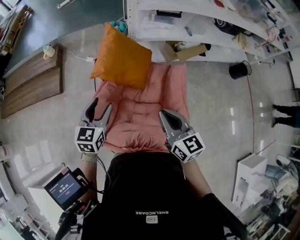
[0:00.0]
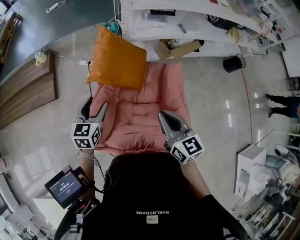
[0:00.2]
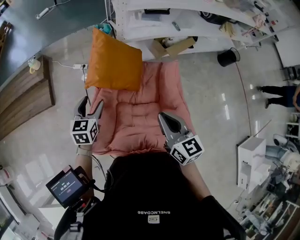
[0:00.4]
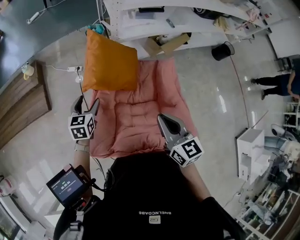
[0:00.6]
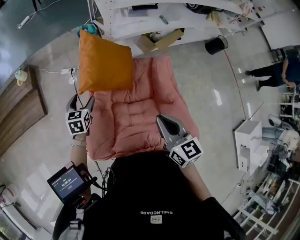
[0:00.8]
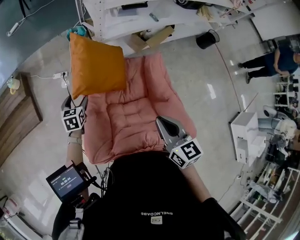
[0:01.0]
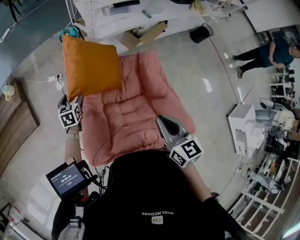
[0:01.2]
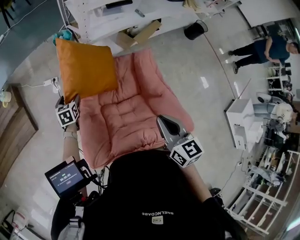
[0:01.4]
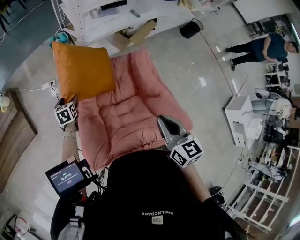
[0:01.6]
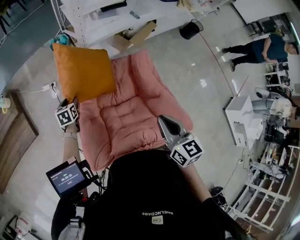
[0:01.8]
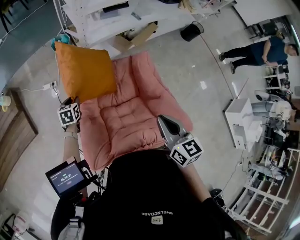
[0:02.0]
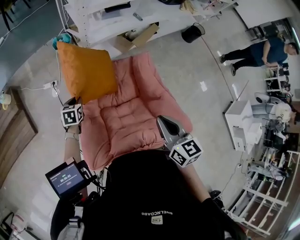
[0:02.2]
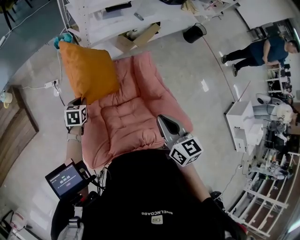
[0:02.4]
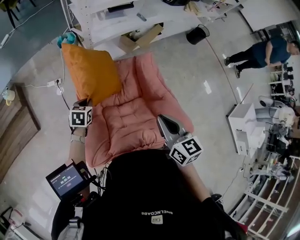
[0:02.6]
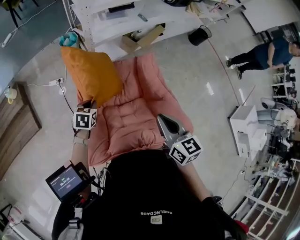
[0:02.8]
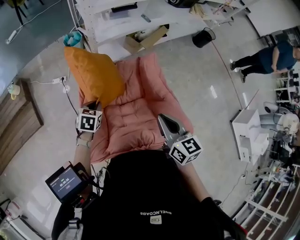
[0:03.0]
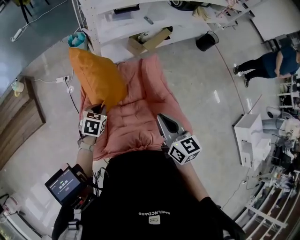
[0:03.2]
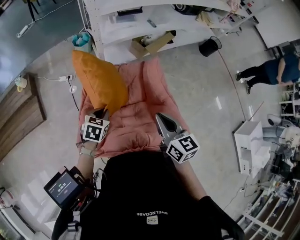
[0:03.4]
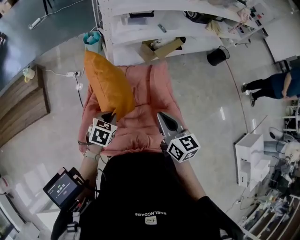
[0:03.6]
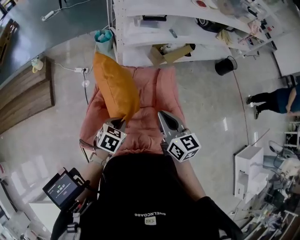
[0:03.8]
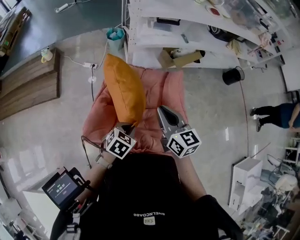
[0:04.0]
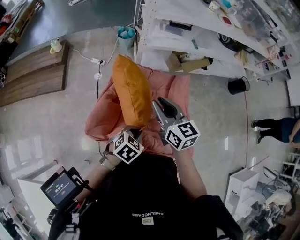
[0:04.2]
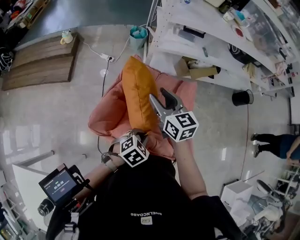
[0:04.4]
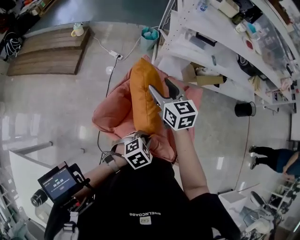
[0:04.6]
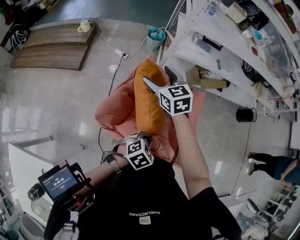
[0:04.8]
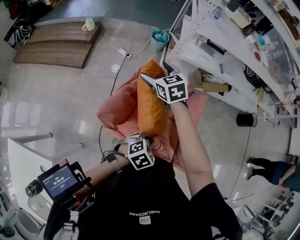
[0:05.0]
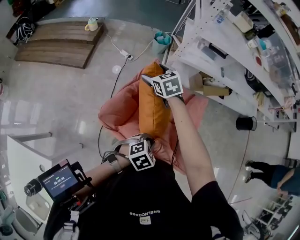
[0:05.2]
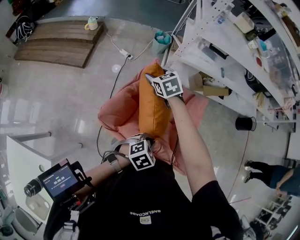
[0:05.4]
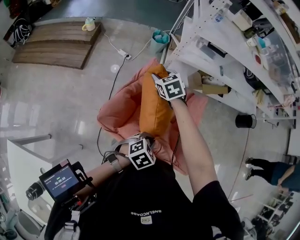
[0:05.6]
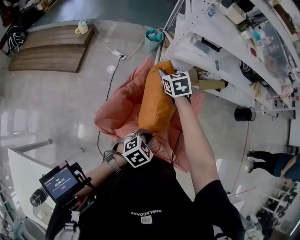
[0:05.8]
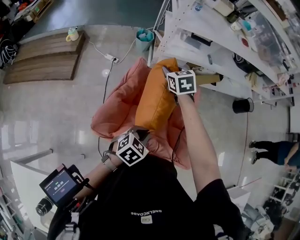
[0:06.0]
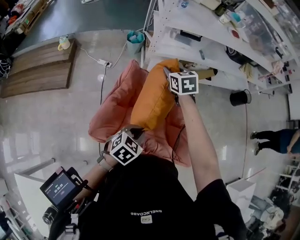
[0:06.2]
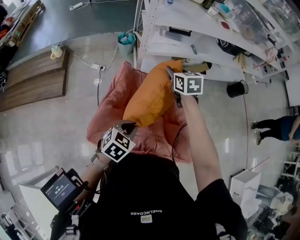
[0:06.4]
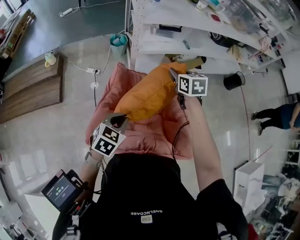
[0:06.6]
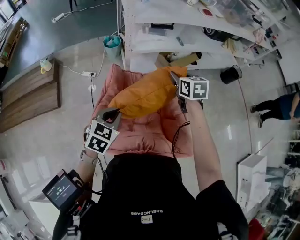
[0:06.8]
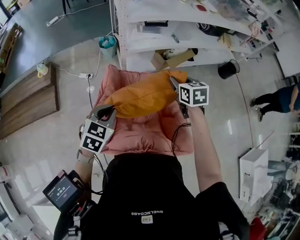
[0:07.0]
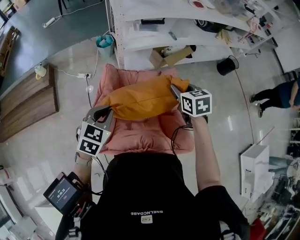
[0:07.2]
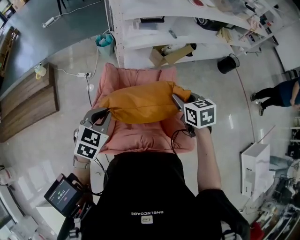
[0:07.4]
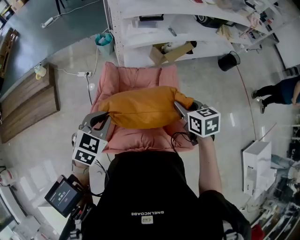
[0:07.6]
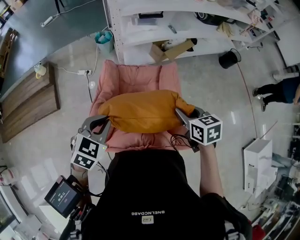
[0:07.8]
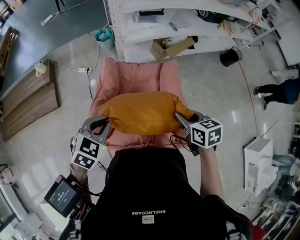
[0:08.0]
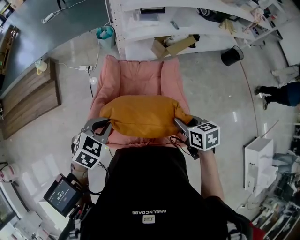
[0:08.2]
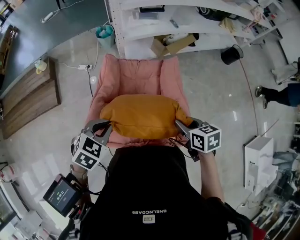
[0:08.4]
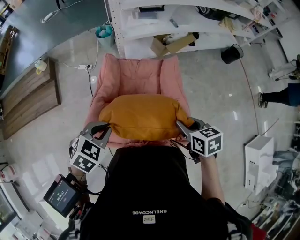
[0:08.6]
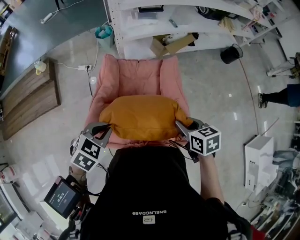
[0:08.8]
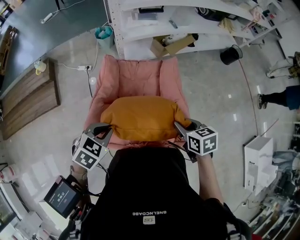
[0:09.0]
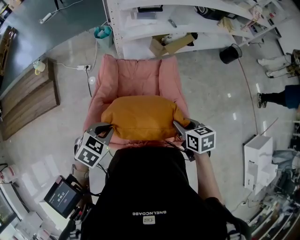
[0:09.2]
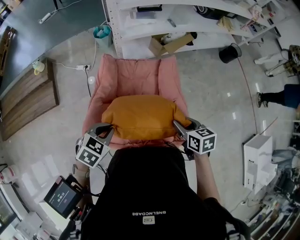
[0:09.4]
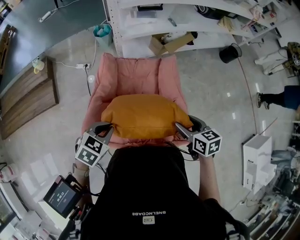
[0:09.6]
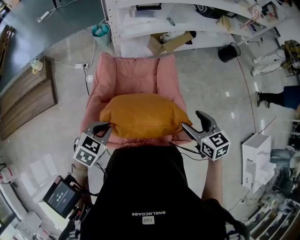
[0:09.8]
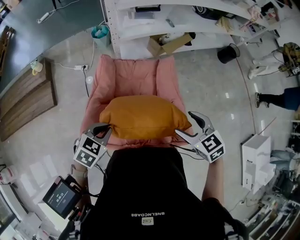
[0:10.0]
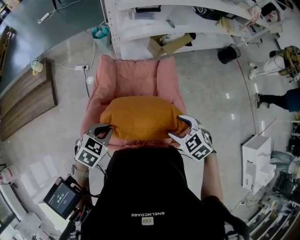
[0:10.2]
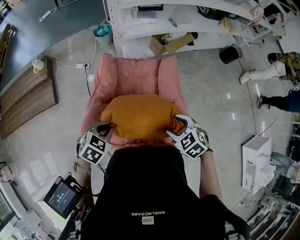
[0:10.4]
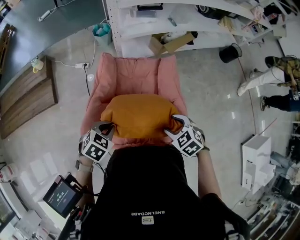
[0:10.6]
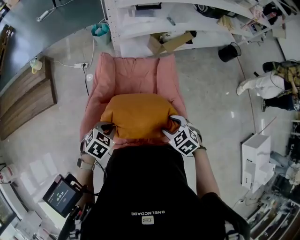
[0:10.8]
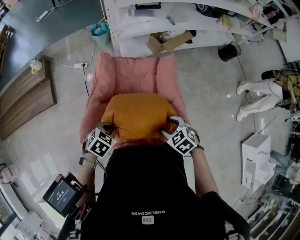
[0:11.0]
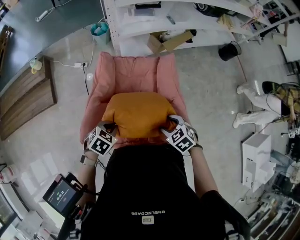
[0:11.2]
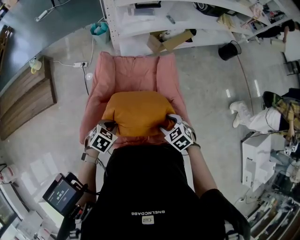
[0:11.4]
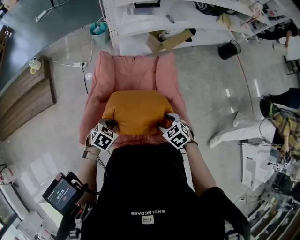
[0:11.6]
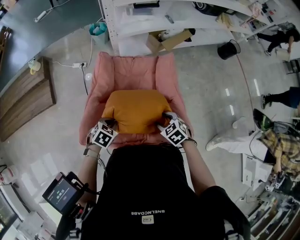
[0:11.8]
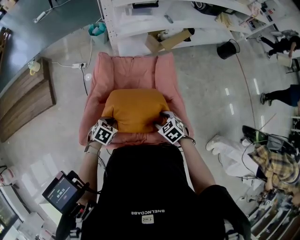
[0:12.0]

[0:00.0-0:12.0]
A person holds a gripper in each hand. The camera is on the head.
0:00.0 to 0:01.6: The right gripper turns by about 30 degrees. Meanwhile the left gripper travels downward, forward and to the left by roughly 30 cm, and turns by some 20 degrees.
0:01.6 to 0:03.0: The left gripper is displaced to the right by approximately 15 cm, swivels about 20 degrees, and closes its fingers.
0:03.0 to 0:04.4: The right gripper moves to the left and forward, about 15 cm, rotates some 30 degrees, and opens. Meanwhile the left gripper goes some 30 cm backward, to the right and upward.
0:04.4 to 0:06.0: The left gripper moves forward, some 5 cm; the right gripper travels forward by roughly 20 cm, turns by about 30 degrees, and opens, then closes once more.
0:06.0 to 0:07.6: The left gripper heads upward and to the left, covering some 15 cm. The right gripper heads to the right and backward, covering approximately 30 cm, and turns by roughly 30 degrees.
0:07.6 to 0:09.0: The left gripper shifts some 5 cm backward. Meanwhile the right gripper travels backward and downward by roughly 10 cm.
0:09.0 to 0:10.4: The right gripper rotates around the line of its fingers by some 40 degrees, counterclockwise from behind, and opens its fingers.
0:10.4 to 0:12.0: The grippers both shift downward by some 15 cm.

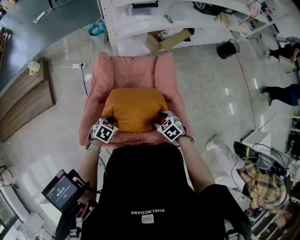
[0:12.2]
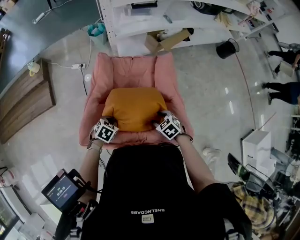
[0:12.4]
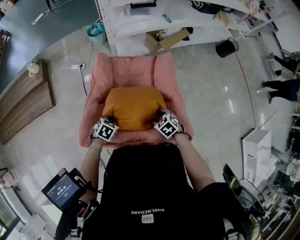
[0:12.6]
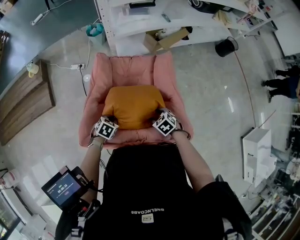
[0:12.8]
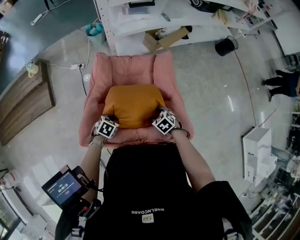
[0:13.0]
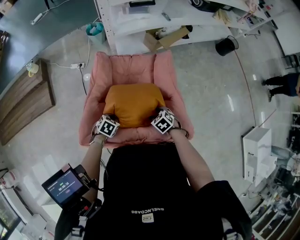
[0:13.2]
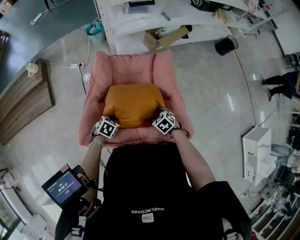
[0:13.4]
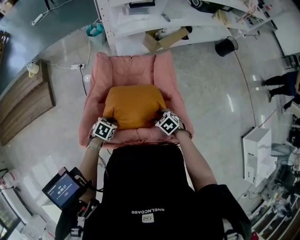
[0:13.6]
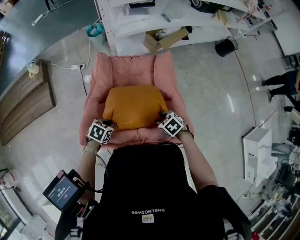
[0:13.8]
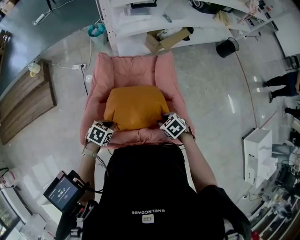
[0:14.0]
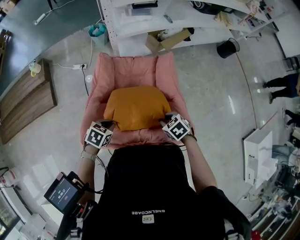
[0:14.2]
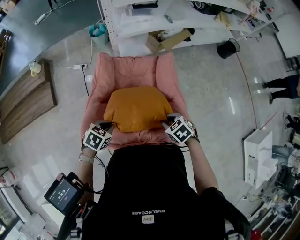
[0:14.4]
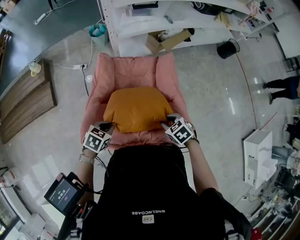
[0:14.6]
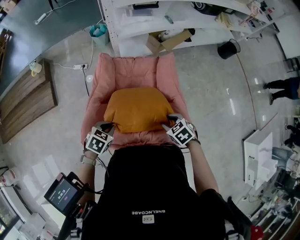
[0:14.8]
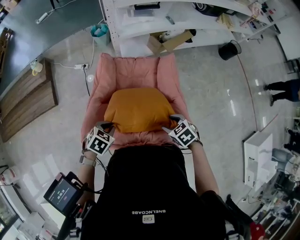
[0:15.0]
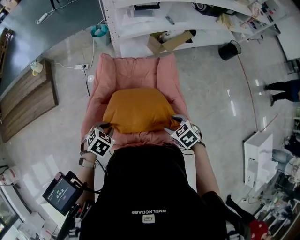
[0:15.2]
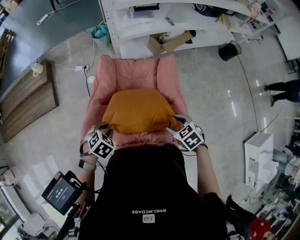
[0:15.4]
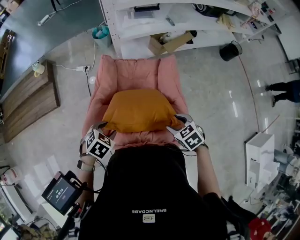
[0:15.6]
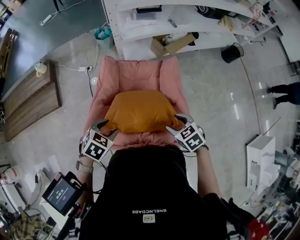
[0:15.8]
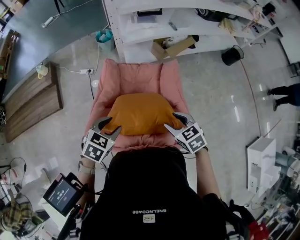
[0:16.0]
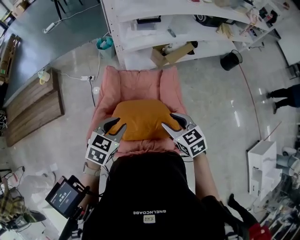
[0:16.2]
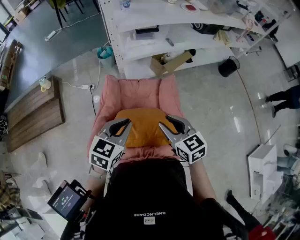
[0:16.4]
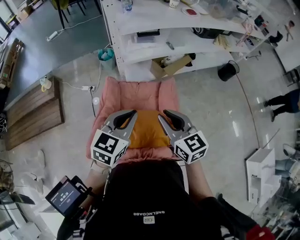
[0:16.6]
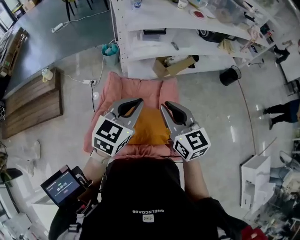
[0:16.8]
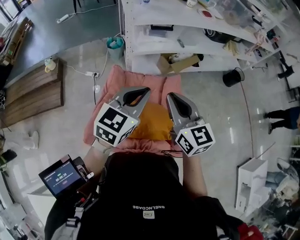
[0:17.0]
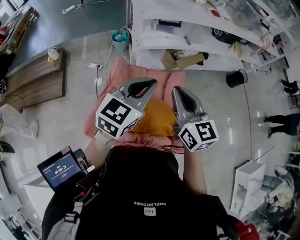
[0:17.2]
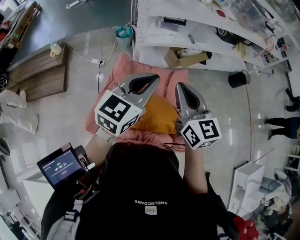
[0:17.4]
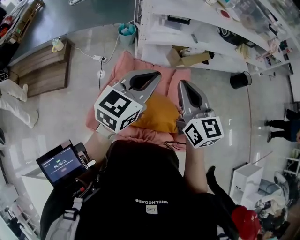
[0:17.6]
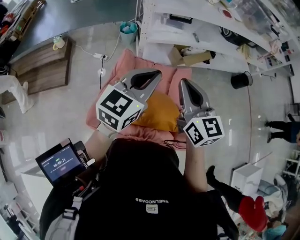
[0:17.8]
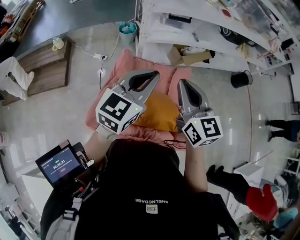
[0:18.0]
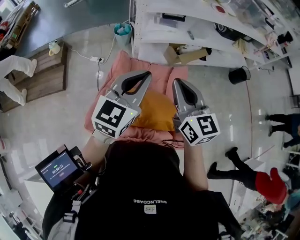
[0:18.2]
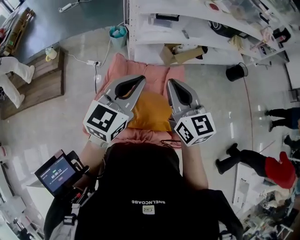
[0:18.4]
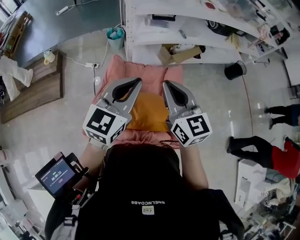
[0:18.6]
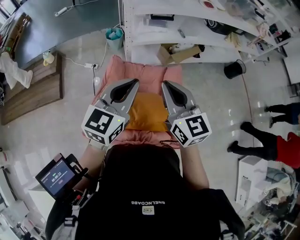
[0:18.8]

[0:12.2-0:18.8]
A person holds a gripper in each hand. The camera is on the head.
0:13.8 to 0:15.4: The two grippers go some 10 cm upward. The left gripper turns by roughly 30 degrees.
0:15.4 to 0:17.2: Both grippers travel together upward and forward, roughly 30 cm. The right gripper points its fingers about 50 degrees further upward, and closes, while the left gripper tips its fingers upward by approximately 60 degrees.
0:17.2 to 0:18.8: The grippers move only a little.

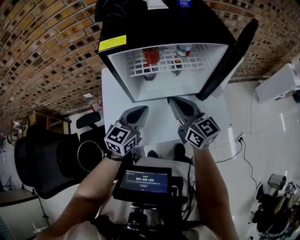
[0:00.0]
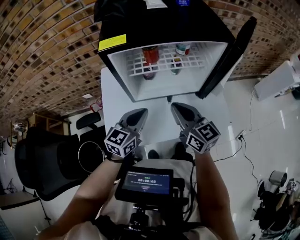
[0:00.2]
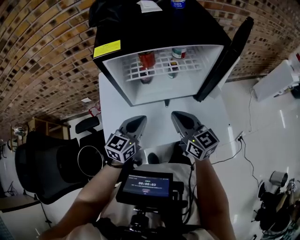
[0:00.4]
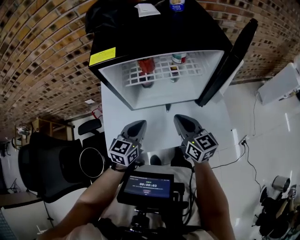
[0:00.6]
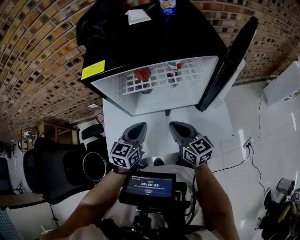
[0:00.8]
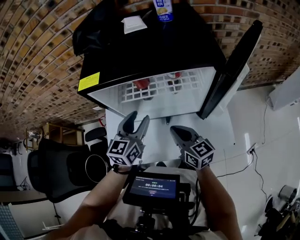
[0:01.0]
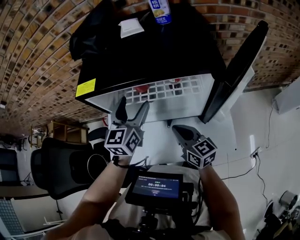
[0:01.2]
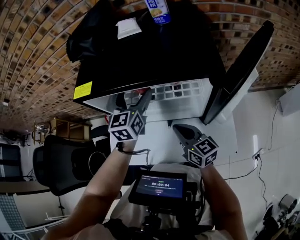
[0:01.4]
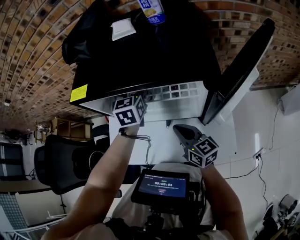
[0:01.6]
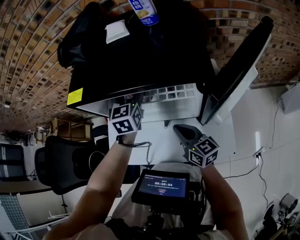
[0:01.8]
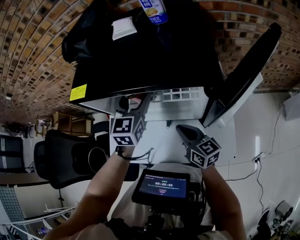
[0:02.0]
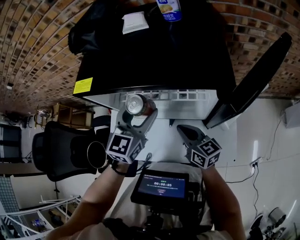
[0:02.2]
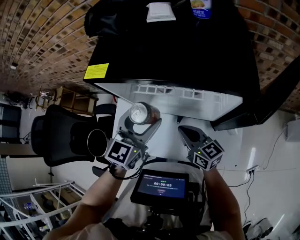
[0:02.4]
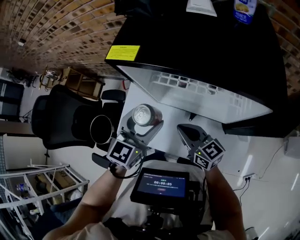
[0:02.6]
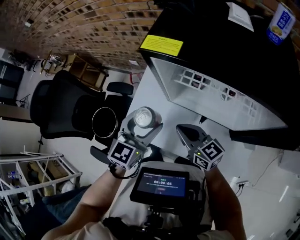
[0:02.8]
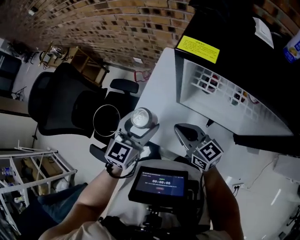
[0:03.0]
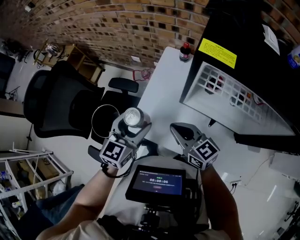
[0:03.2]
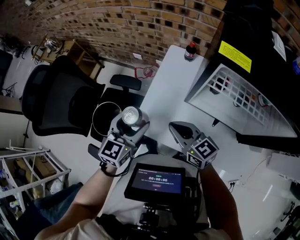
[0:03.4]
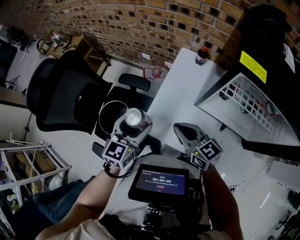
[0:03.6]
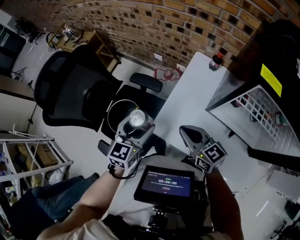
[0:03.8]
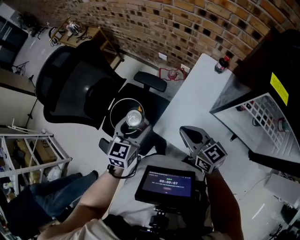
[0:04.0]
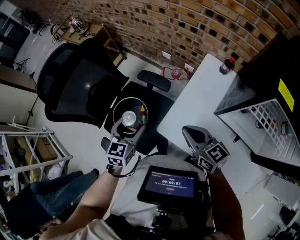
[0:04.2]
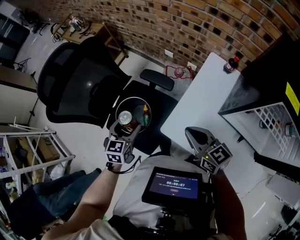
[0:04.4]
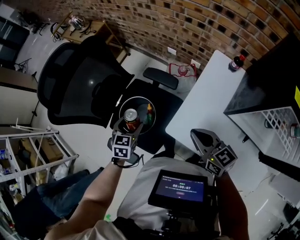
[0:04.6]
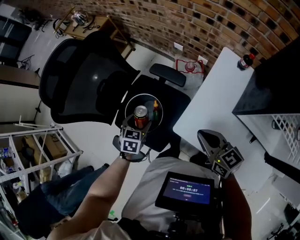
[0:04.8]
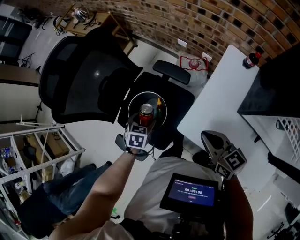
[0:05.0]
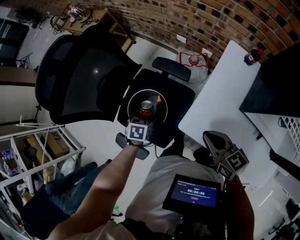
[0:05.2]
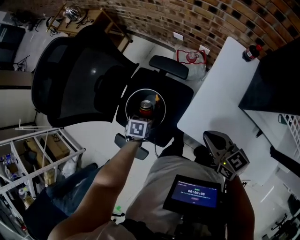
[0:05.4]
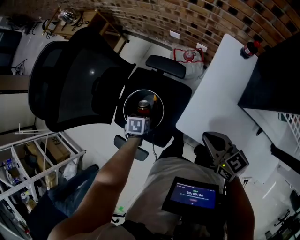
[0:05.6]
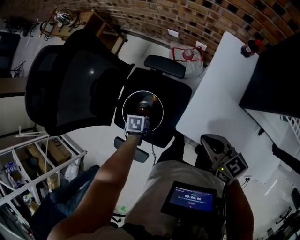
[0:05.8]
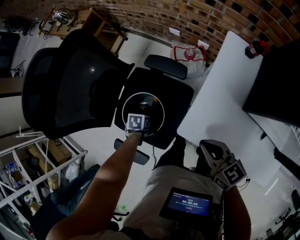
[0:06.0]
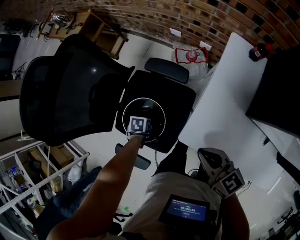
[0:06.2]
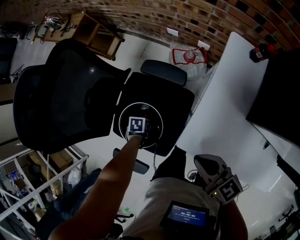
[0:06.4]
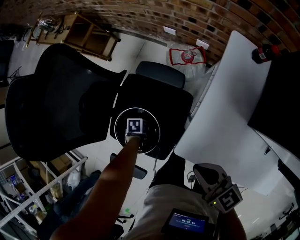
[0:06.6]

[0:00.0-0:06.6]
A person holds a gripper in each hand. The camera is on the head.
0:00.0 to 0:01.6: The left gripper reaches some 5 cm upward, then returns, swivels approximately 40 degrees, and opens its fingers, while the right gripper is displaced downward by about 10 cm, and swivels approximately 20 degrees.
0:01.6 to 0:03.2: The left gripper is displaced to the left and backward by about 40 cm, while the right gripper heads to the left, covering roughly 30 cm, and turns by about 30 degrees.
0:03.2 to 0:05.0: The left gripper goes about 35 cm to the left and downward, and tilts its fingers about 40 degrees downward, while the right gripper is displaced to the left, forward and downward by roughly 15 cm.
0:05.0 to 0:06.6: The left gripper goes roughly 25 cm downward, and rotates approximately 40 degrees. Meanwhile the right gripper moves about 5 cm.
